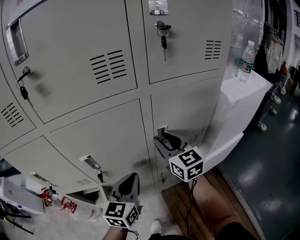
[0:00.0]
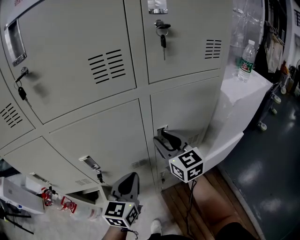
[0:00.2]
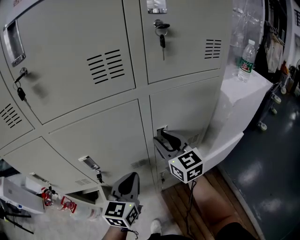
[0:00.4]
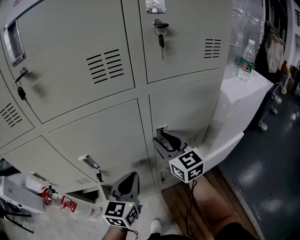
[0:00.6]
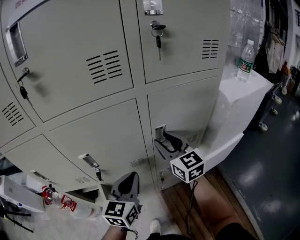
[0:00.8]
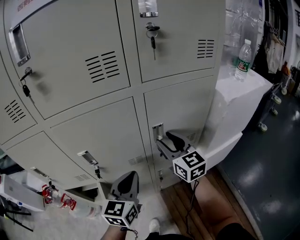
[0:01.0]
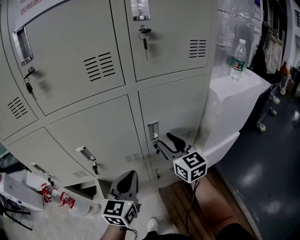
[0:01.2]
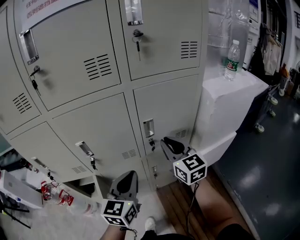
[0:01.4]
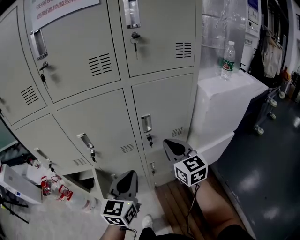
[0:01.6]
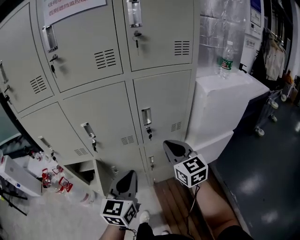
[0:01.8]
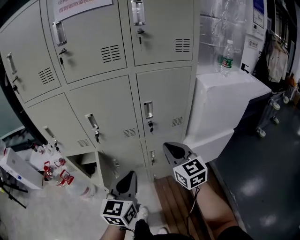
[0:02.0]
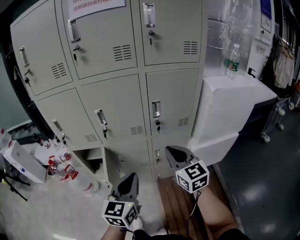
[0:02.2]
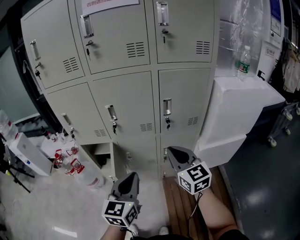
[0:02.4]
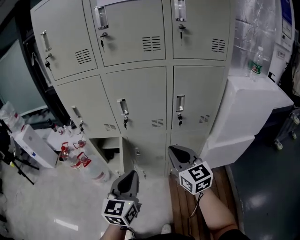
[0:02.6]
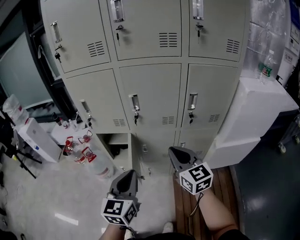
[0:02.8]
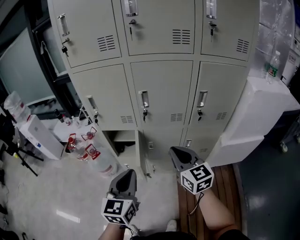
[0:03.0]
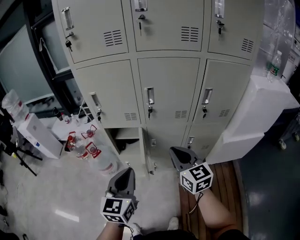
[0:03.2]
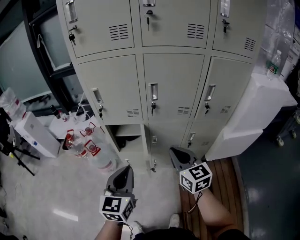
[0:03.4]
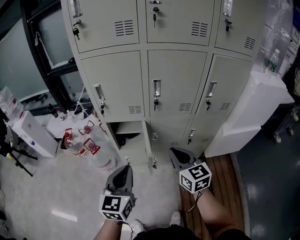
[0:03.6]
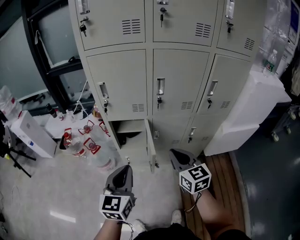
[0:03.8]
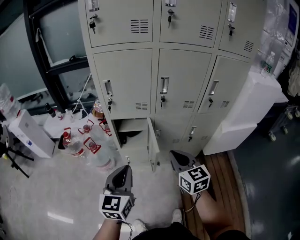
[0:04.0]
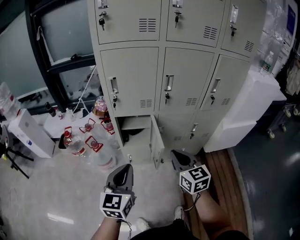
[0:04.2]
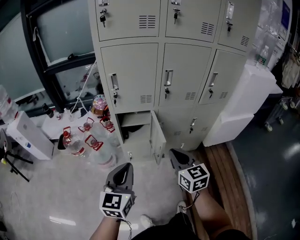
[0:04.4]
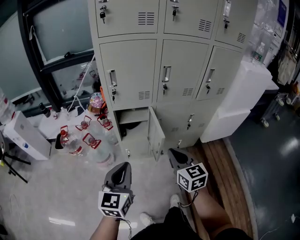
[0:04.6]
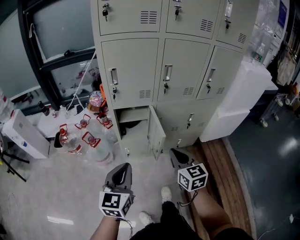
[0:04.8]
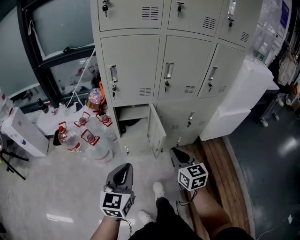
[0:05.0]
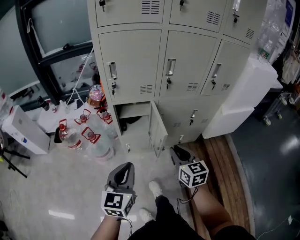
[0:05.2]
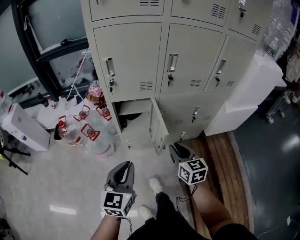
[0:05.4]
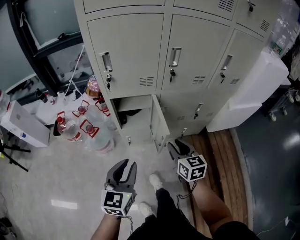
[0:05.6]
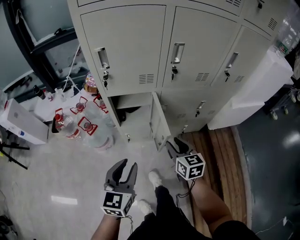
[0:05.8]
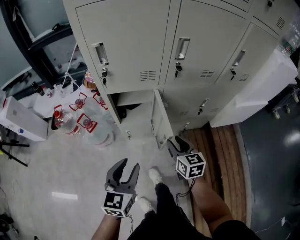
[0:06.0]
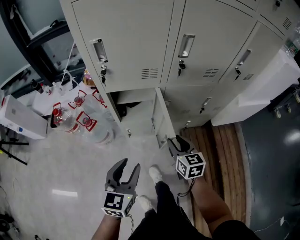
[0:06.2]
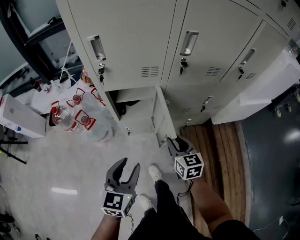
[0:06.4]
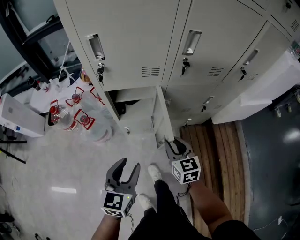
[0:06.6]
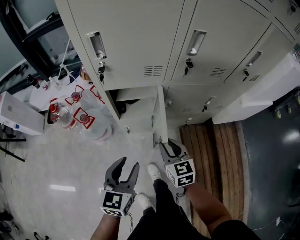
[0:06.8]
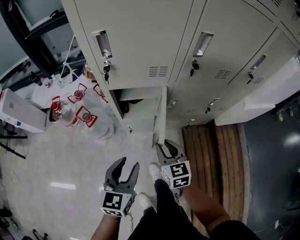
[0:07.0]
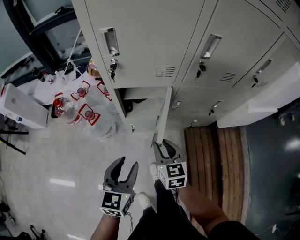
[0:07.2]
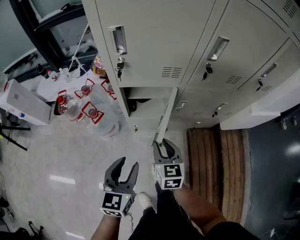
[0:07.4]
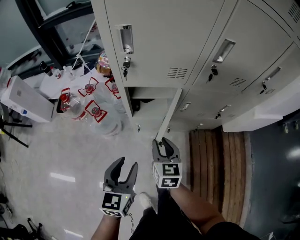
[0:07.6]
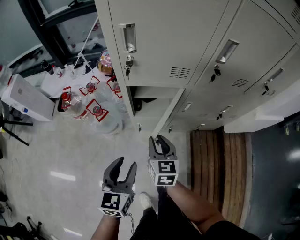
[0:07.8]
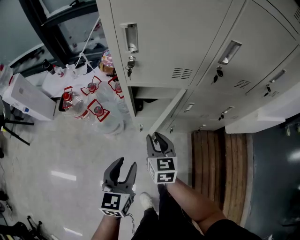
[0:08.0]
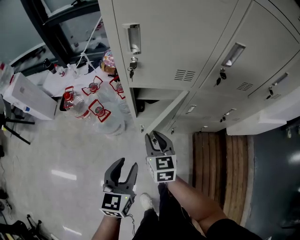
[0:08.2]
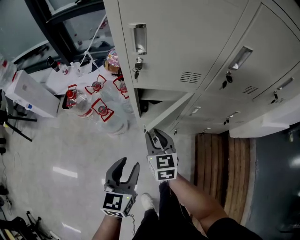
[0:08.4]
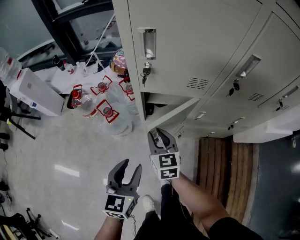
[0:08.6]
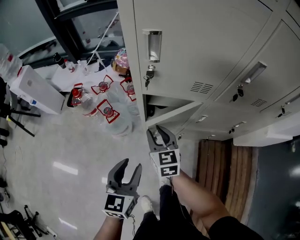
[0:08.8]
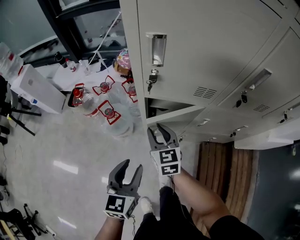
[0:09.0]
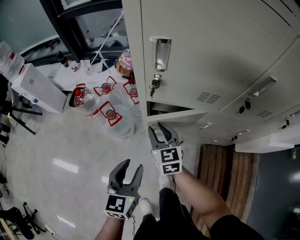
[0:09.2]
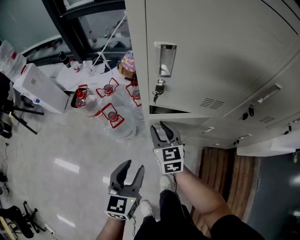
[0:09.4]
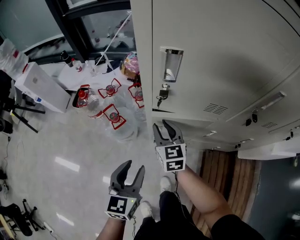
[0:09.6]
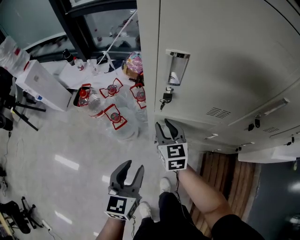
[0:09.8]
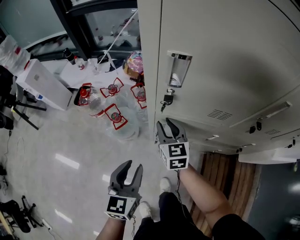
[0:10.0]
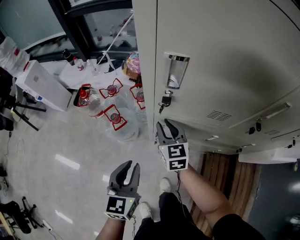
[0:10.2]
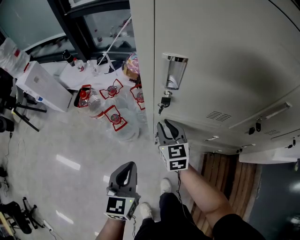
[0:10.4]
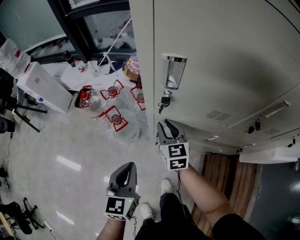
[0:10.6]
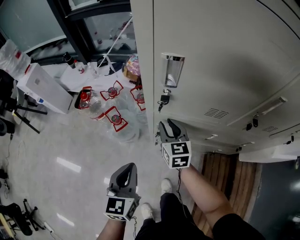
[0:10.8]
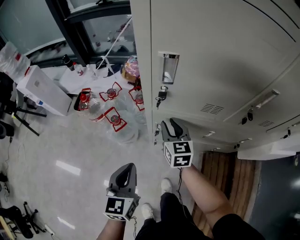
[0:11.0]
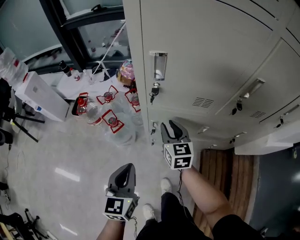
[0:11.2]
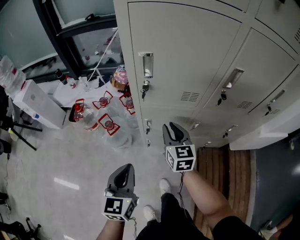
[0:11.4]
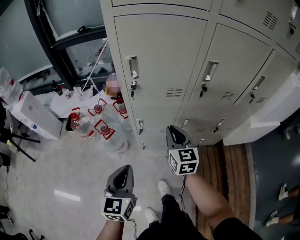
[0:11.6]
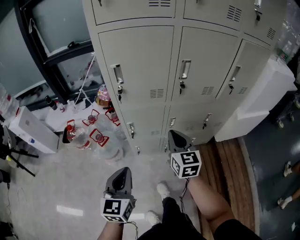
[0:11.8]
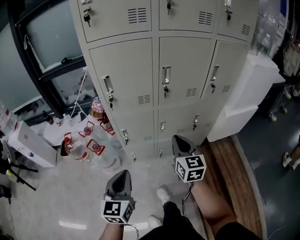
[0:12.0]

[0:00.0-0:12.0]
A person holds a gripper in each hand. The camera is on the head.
0:00.0 to 0:01.6: The two grippers go some 15 cm backward and to the right. The right gripper closes.
0:01.6 to 0:03.0: Both grippers travel together to the left and backward, roughly 25 cm. The left gripper swivels approximately 20 degrees.
0:03.0 to 0:04.4: The left gripper is displaced to the left by about 20 cm; the right gripper goes about 20 cm to the left and backward.
0:04.4 to 0:06.0: Both grippers travel together downward and forward, some 15 cm. The right gripper opens. The left gripper opens its fingers.
0:06.0 to 0:07.6: The left gripper is displaced to the left by approximately 5 cm; the right gripper goes approximately 15 cm to the left.
0:07.6 to 0:09.0: The left gripper travels forward by some 5 cm; the right gripper shifts some 15 cm forward and to the left, and changes its angle by roughly 20 degrees.
0:09.0 to 0:10.4: Both grippers travel together forward, some 10 cm. The left gripper closes its fingers.
0:10.4 to 0:12.0: The right gripper moves backward, to the right and upward, approximately 40 cm, turns by some 30 degrees, and closes its fingers. The left gripper is displaced backward and upward by approximately 25 cm, and changes its angle by roughly 20 degrees.

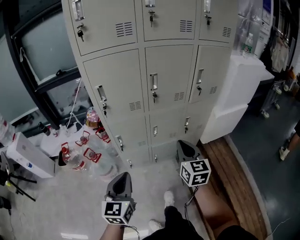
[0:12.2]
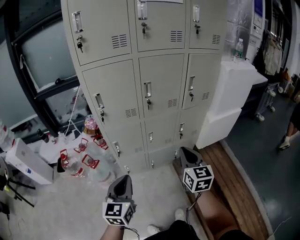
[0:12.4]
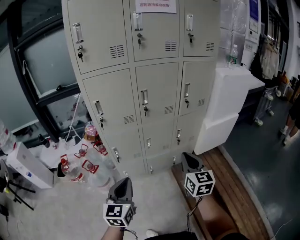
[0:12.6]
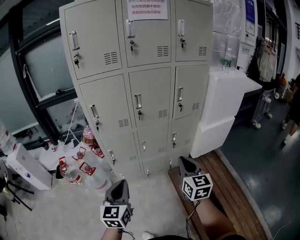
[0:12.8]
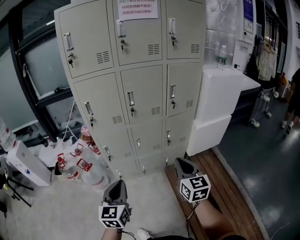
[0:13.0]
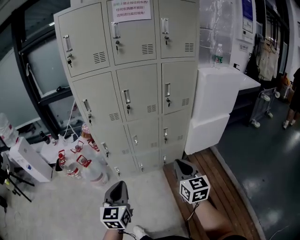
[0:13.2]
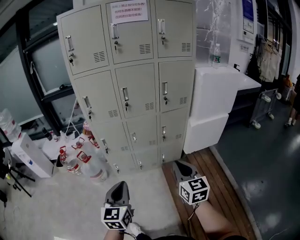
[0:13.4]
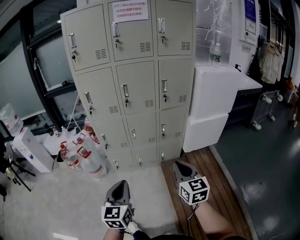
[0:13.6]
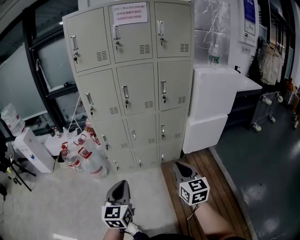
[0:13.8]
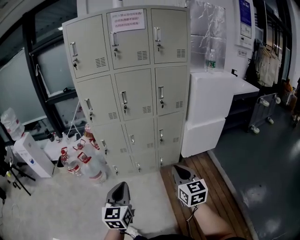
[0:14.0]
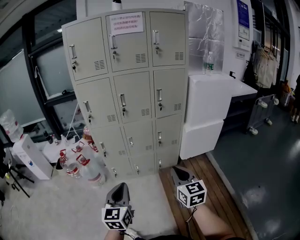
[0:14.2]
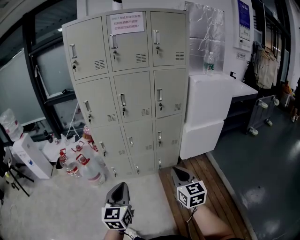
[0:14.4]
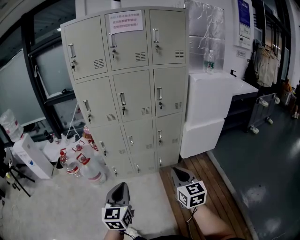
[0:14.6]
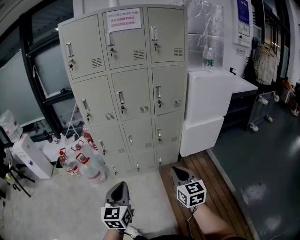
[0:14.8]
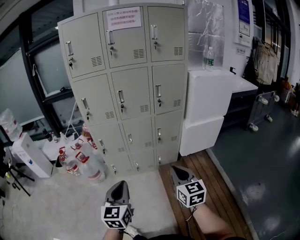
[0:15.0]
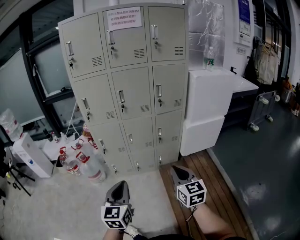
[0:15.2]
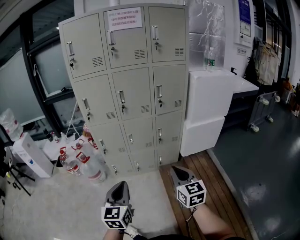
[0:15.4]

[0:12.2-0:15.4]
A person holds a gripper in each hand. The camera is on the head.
0:12.2 to 0:13.8: The right gripper shifts roughly 35 cm backward and to the right; the left gripper heads to the right and backward, covering about 30 cm.
0:13.8 to 0:15.4: The grippers move only a little.

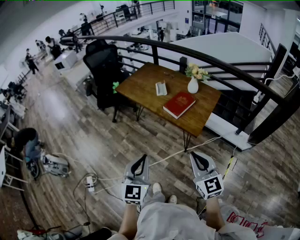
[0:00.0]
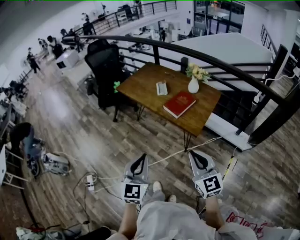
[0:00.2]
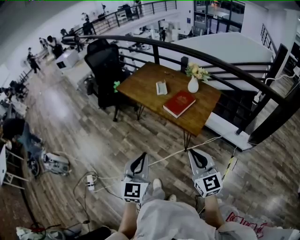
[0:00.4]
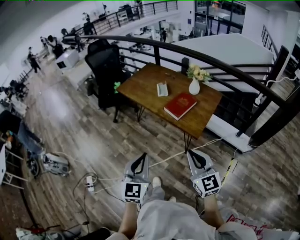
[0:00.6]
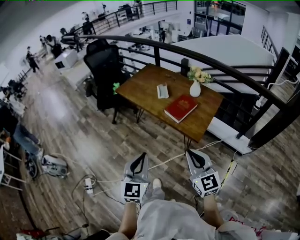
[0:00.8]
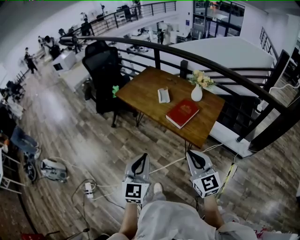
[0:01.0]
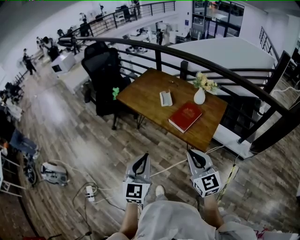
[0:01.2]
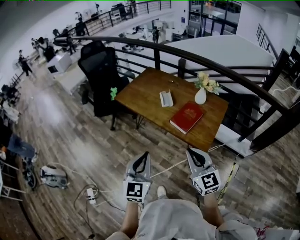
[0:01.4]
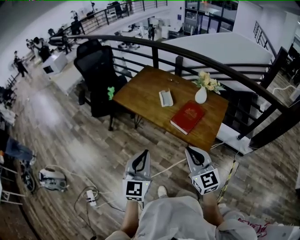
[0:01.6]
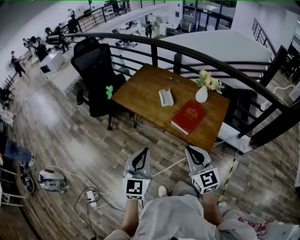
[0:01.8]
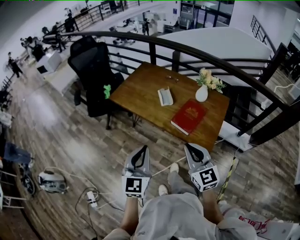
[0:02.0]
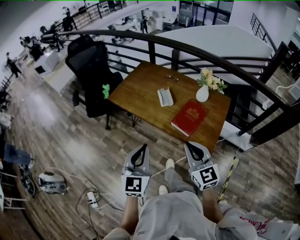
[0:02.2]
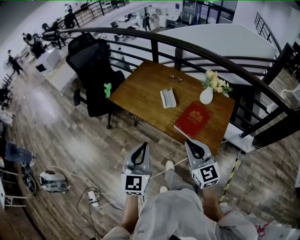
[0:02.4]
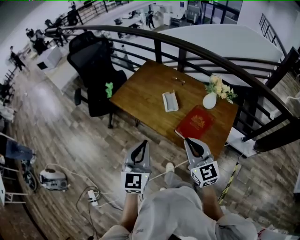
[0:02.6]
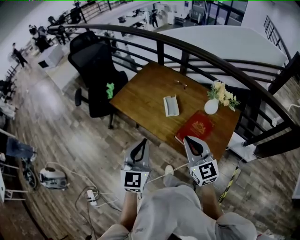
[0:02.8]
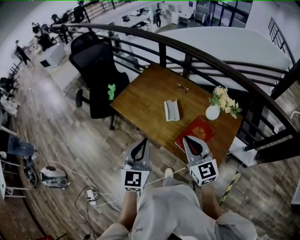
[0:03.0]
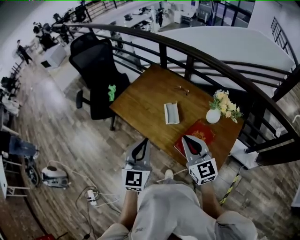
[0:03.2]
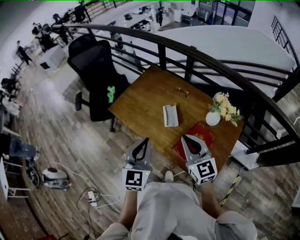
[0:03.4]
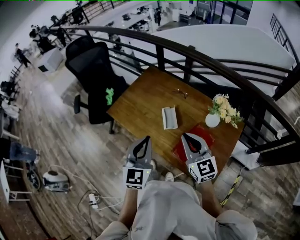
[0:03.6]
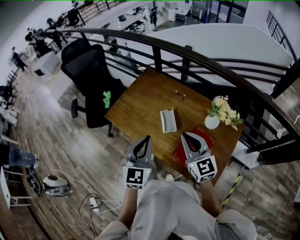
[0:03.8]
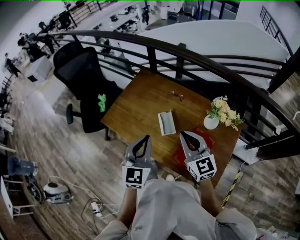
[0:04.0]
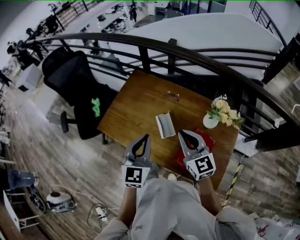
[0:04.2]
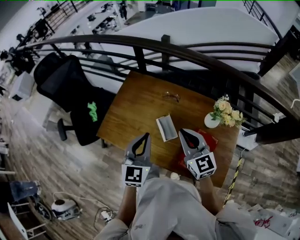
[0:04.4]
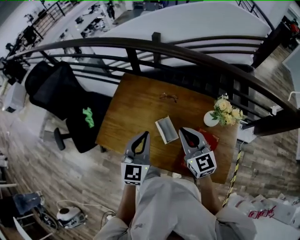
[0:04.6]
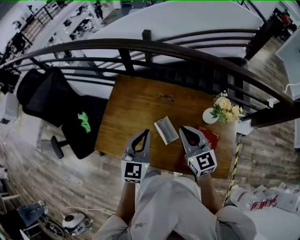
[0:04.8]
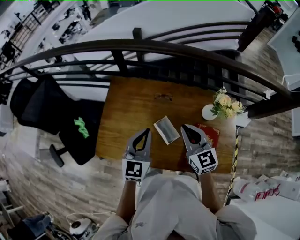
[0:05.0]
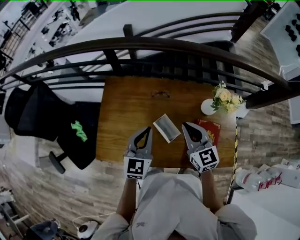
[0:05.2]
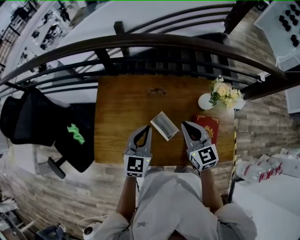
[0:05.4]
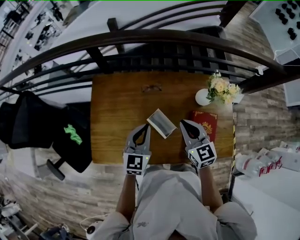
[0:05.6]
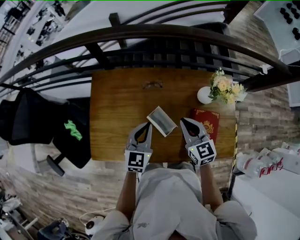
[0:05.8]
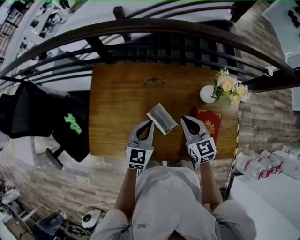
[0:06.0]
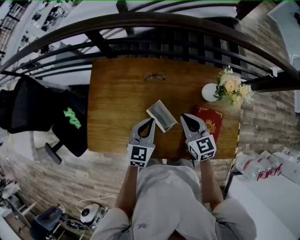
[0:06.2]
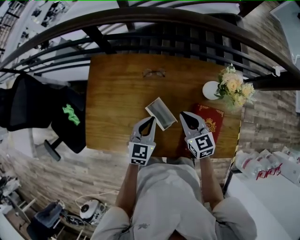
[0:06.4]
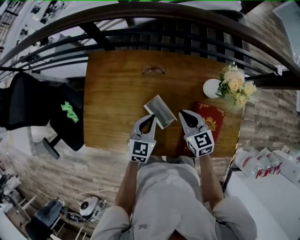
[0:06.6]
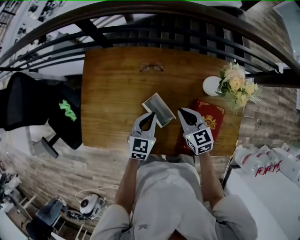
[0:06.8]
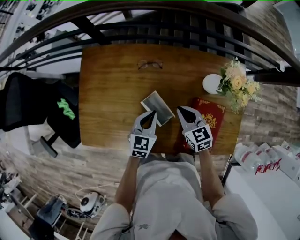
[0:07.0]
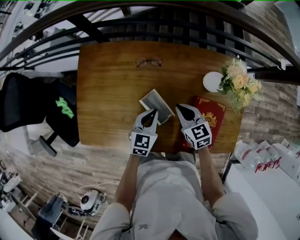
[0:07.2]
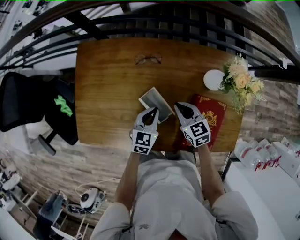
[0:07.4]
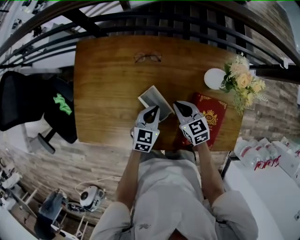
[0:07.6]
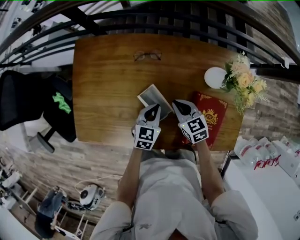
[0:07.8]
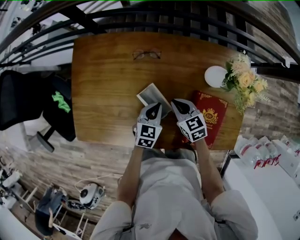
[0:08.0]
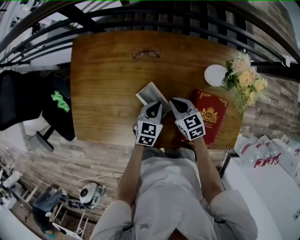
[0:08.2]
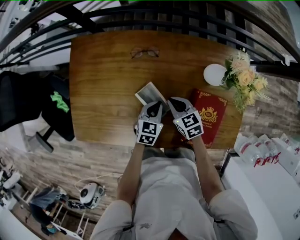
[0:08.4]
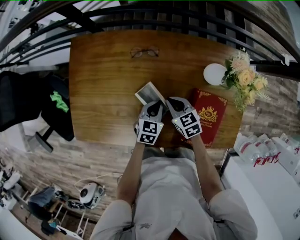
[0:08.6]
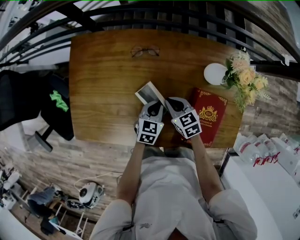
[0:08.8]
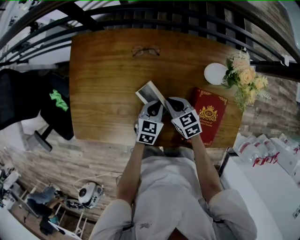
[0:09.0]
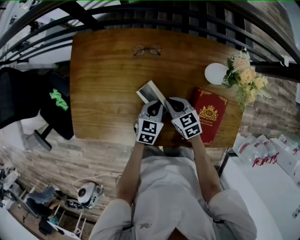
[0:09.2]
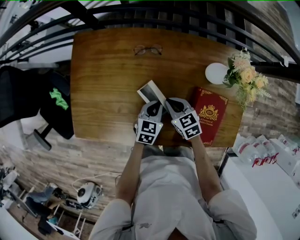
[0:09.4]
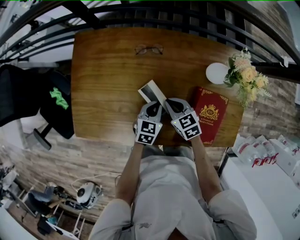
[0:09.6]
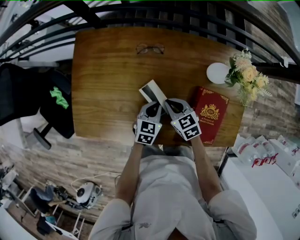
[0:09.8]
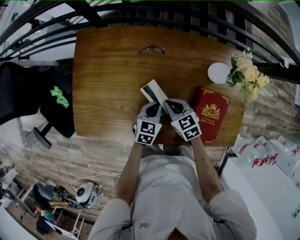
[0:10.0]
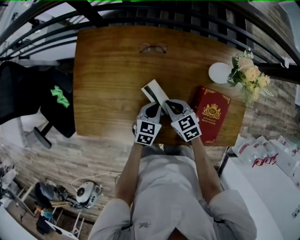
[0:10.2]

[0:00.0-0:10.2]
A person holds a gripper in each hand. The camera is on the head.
0:00.0 to 0:01.4: The right gripper shifts approximately 20 cm forward and to the left; the left gripper is displaced forward by some 15 cm.
0:01.4 to 0:03.0: Both grippers travel together forward, some 30 cm.
0:03.0 to 0:04.4: The two grippers go about 25 cm forward.
0:04.4 to 0:05.8: The grippers both shift downward by about 15 cm. The right gripper changes its angle by approximately 30 degrees. Meanwhile the left gripper turns by approximately 30 degrees.
0:05.8 to 0:07.2: The right gripper goes some 15 cm downward. The left gripper moves downward and to the right, roughly 15 cm.
0:07.2 to 0:08.8: Both grippers move downward, about 5 cm.
0:08.8 to 0:10.2: The grippers stay close to where they were, moving slightly.
